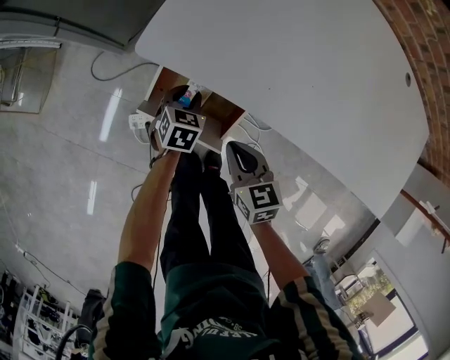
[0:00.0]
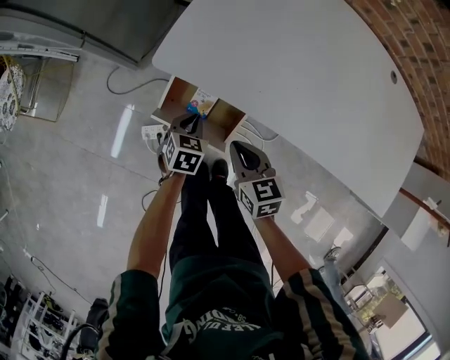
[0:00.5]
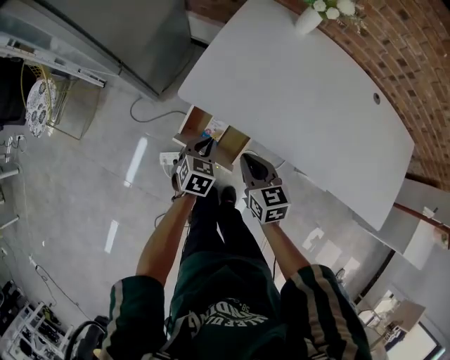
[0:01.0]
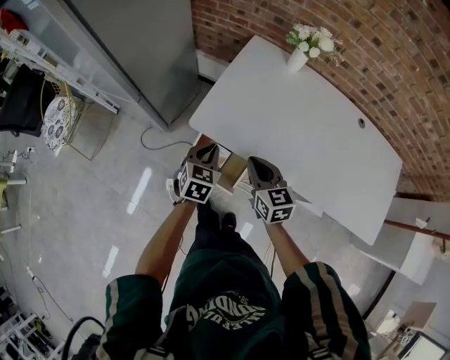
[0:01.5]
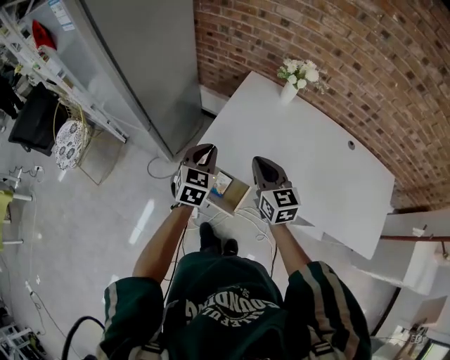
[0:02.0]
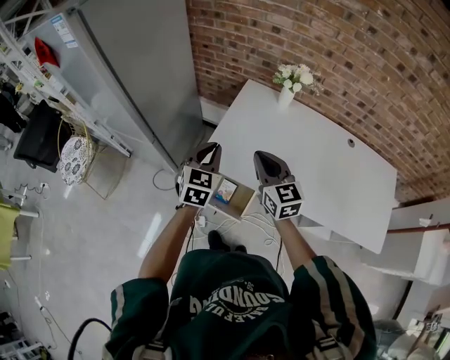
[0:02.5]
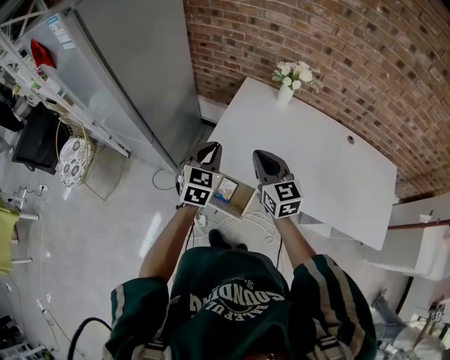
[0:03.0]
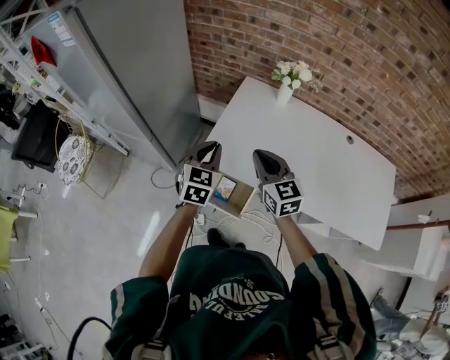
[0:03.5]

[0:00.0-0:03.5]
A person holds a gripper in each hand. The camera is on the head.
0:00.0 to 0:02.0: Both grippers travel together upward, some 40 cm. The right gripper rotates about 30 degrees, while the left gripper swivels about 30 degrees, and closes its fingers.
0:02.0 to 0:03.5: The grippers stay close to where they were, moving slightly.

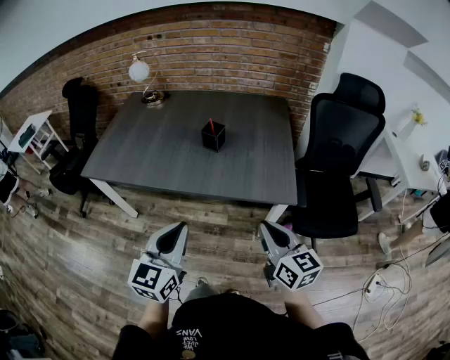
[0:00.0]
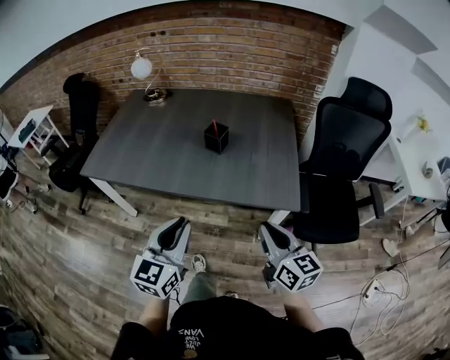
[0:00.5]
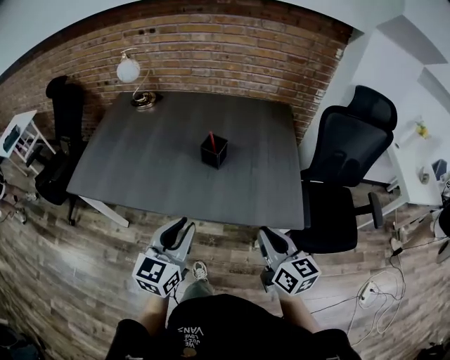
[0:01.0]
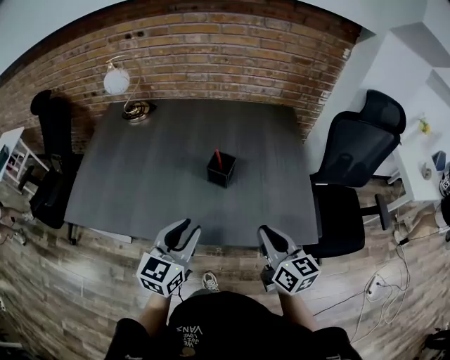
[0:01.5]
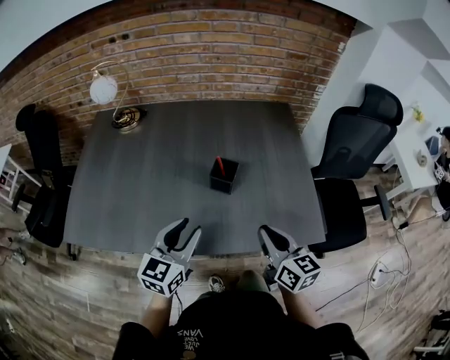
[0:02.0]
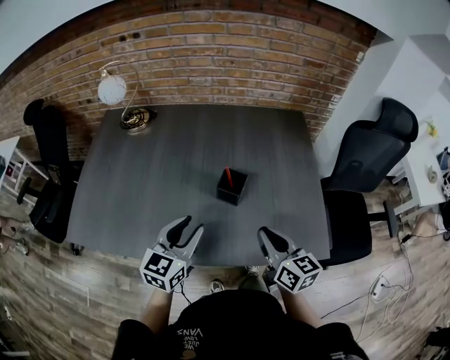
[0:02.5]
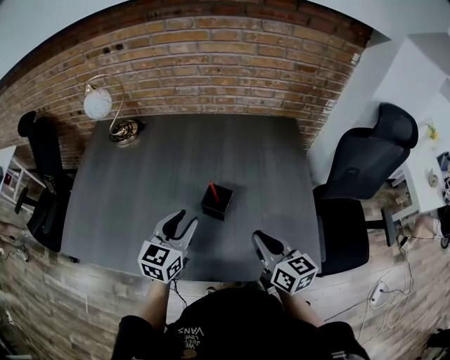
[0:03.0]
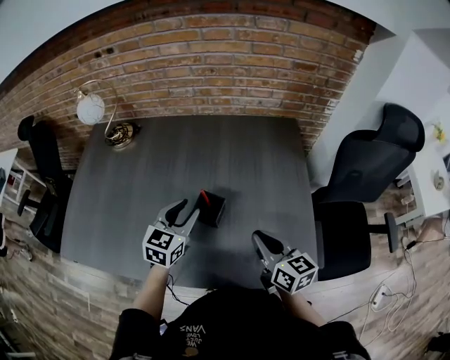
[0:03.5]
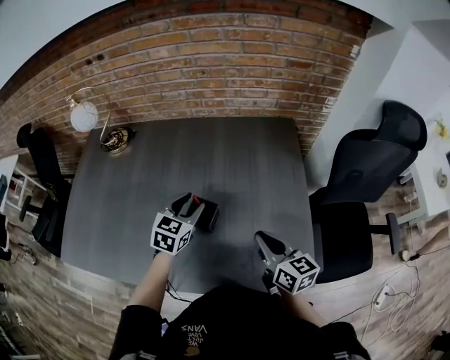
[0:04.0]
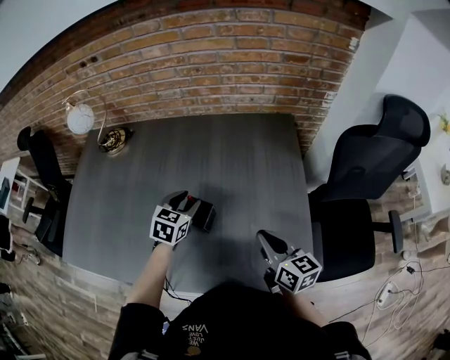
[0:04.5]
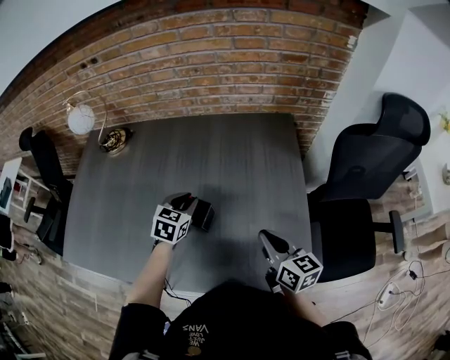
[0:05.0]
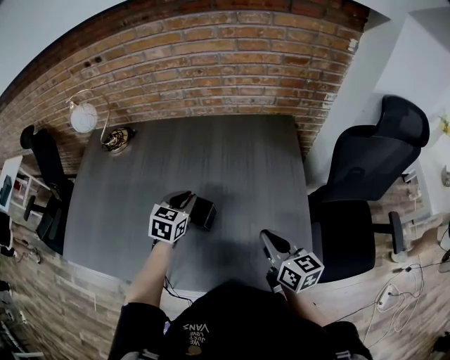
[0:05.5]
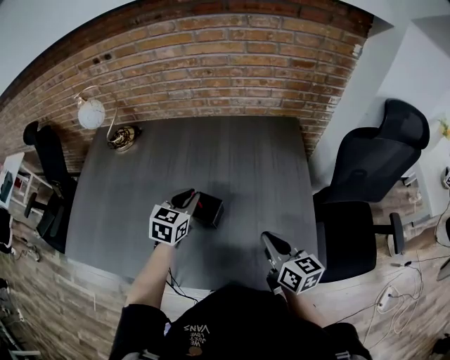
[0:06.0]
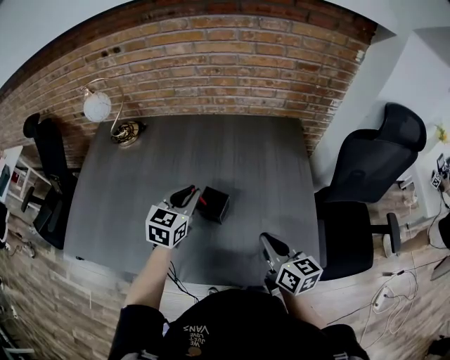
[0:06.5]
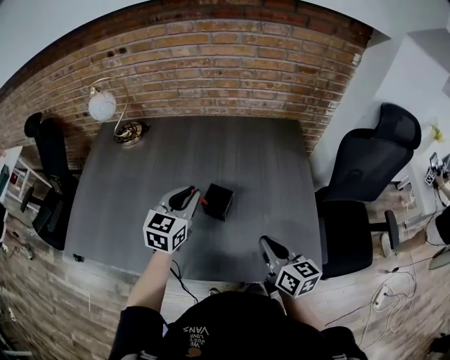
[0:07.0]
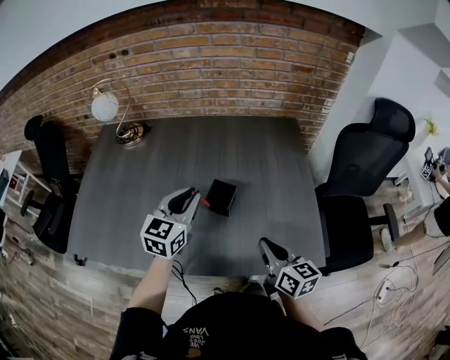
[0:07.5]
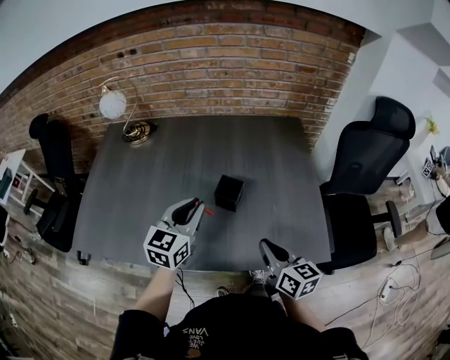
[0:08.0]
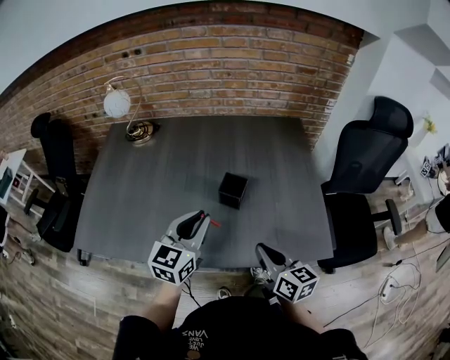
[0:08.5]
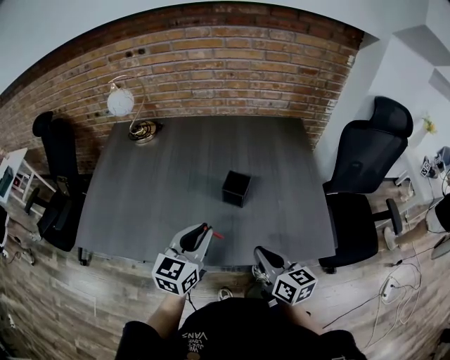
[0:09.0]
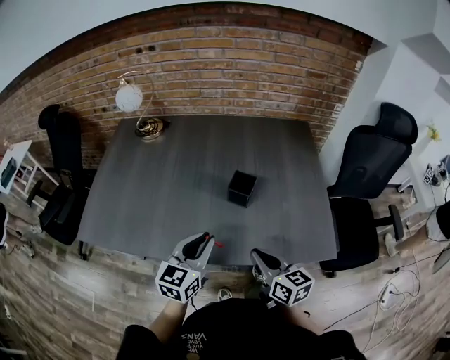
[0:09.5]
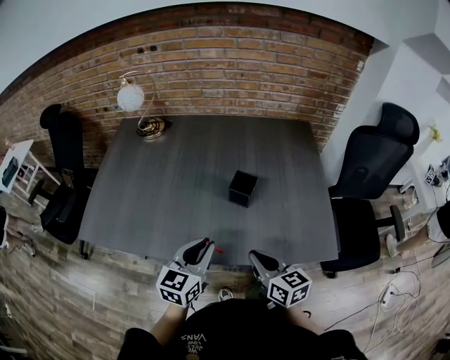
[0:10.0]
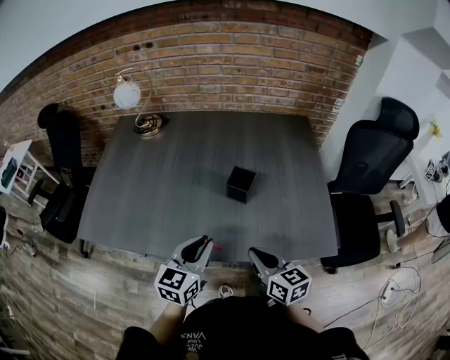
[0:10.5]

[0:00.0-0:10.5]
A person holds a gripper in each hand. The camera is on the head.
0:00.0 to 0:02.0: The left gripper is displaced forward by some 30 cm, and opens. The right gripper travels forward and to the left by approximately 25 cm.
0:02.0 to 0:04.0: The right gripper heads forward and to the right, covering approximately 20 cm, while the left gripper is displaced forward by approximately 25 cm, and changes its angle by roughly 20 degrees.
0:04.0 to 0:06.5: The left gripper moves about 5 cm.
0:06.5 to 0:08.5: The right gripper goes some 15 cm backward and to the left; the left gripper heads backward, covering some 15 cm.
0:08.5 to 0:10.5: The right gripper moves some 5 cm. Meanwhile the left gripper moves backward and downward, some 10 cm.

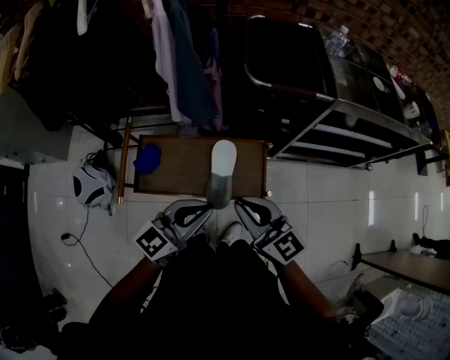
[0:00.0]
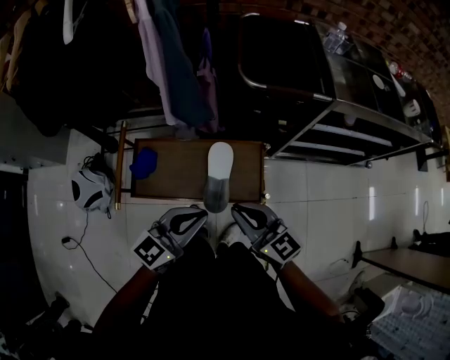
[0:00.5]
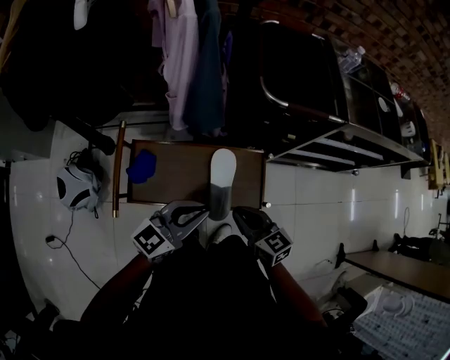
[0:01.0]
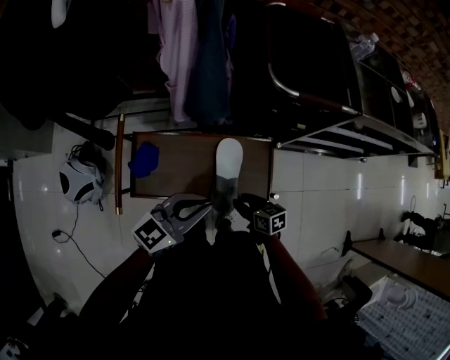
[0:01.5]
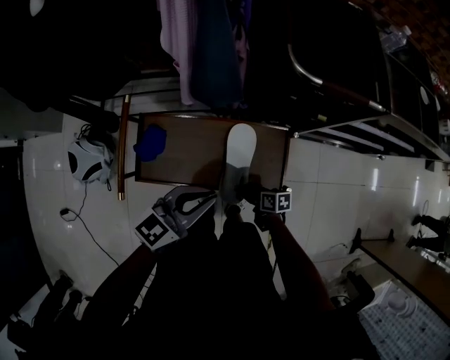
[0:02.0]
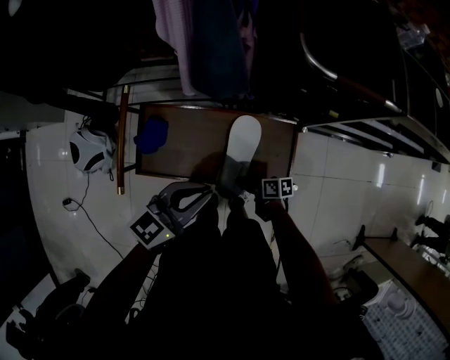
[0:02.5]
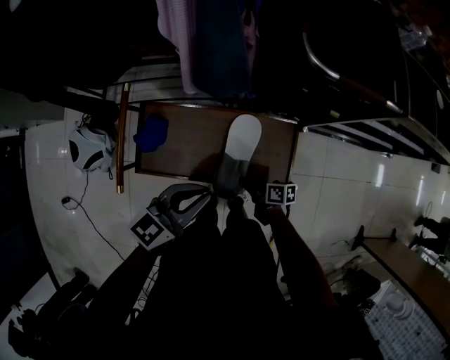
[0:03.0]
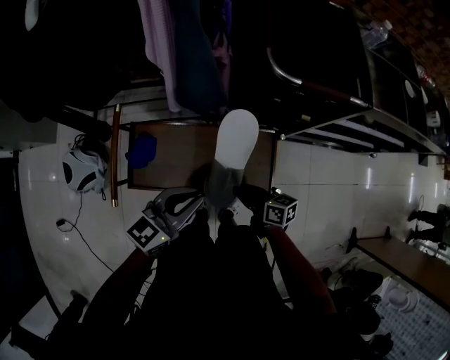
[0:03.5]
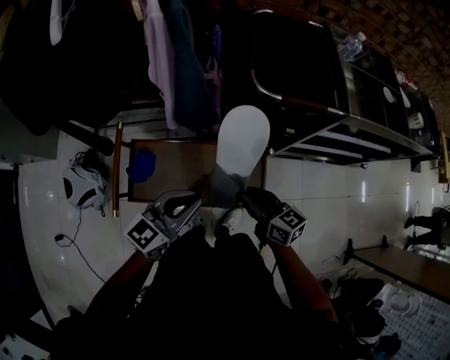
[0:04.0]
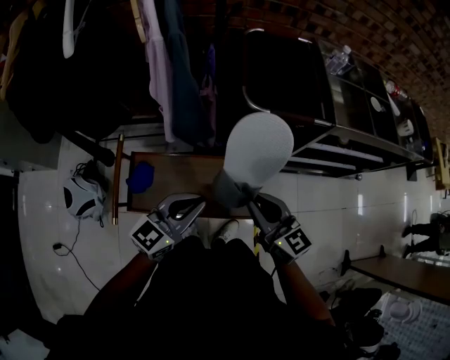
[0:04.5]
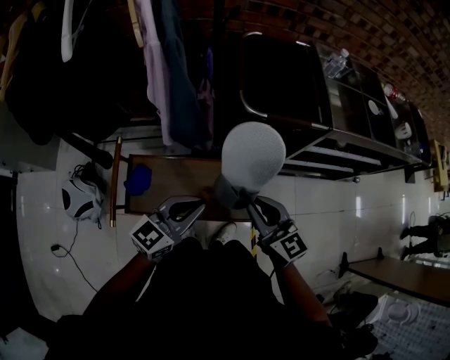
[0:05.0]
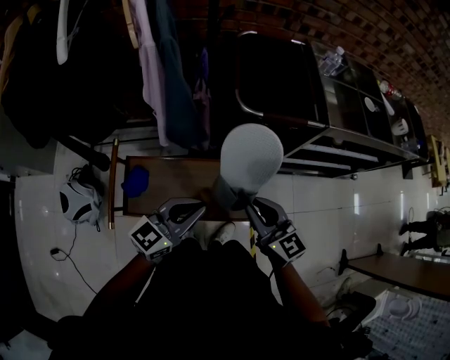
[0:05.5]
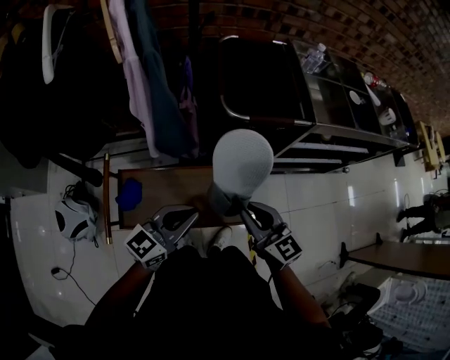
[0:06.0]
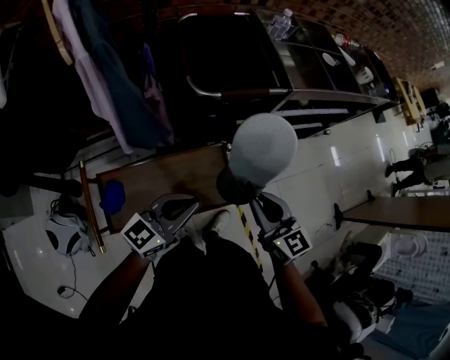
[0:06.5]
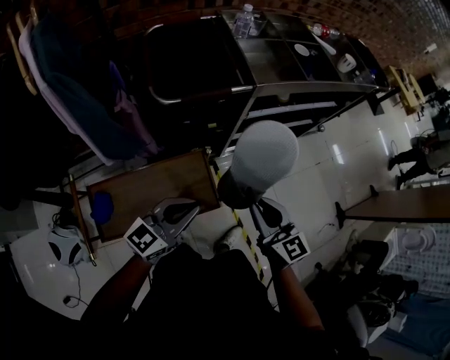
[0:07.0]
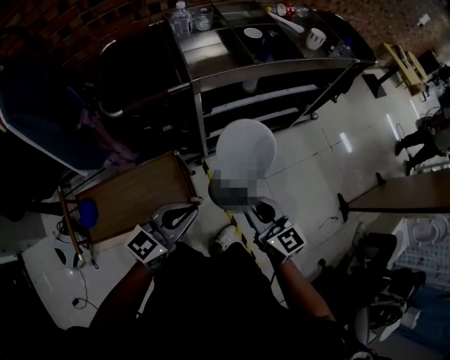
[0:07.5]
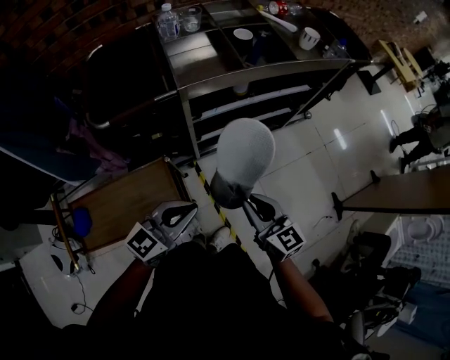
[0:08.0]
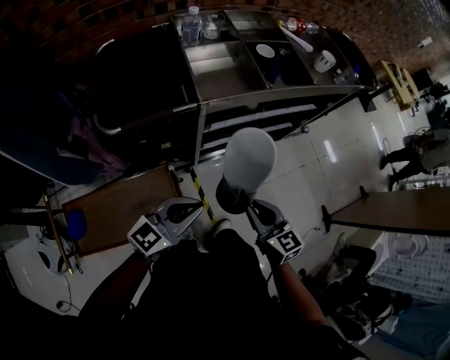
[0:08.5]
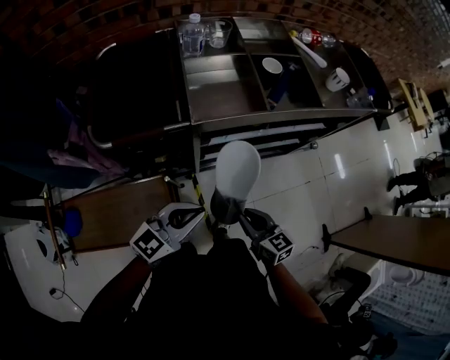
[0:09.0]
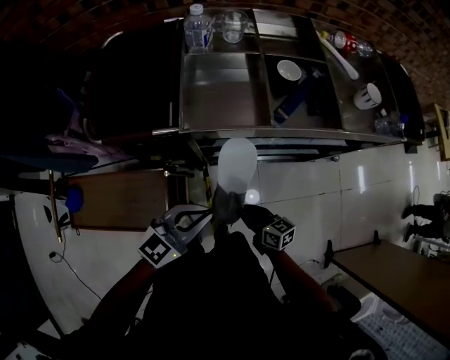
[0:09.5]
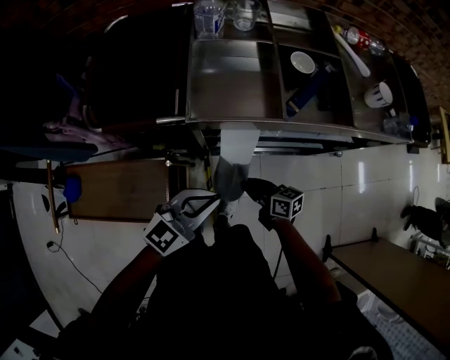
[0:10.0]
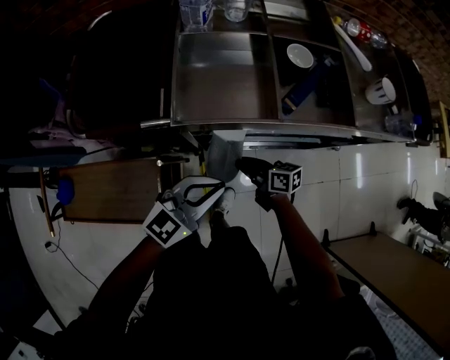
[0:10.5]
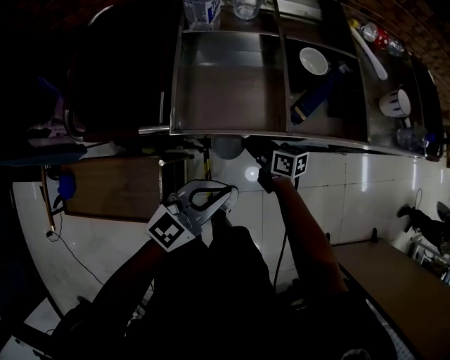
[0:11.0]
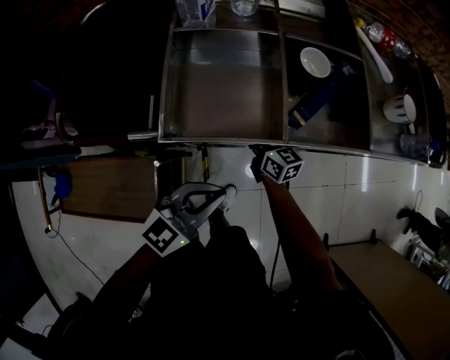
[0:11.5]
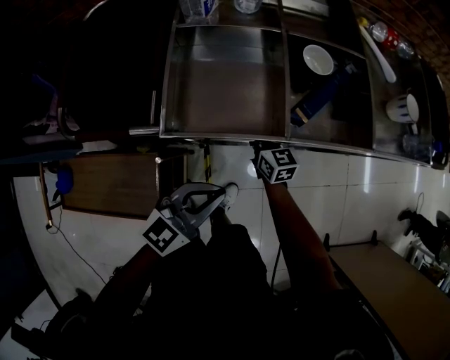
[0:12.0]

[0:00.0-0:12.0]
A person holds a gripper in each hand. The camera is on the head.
0:00.0 to 0:02.0: The right gripper moves downward, some 40 cm, points its fingers approximately 40 degrees further downward, and opens up; the left gripper shifts about 15 cm downward, forward and to the left.
0:02.0 to 0:04.0: The left gripper moves upward, some 5 cm. Meanwhile the right gripper travels upward by about 30 cm, swivels roughly 40 degrees, and closes up.
0:04.0 to 0:06.0: The right gripper shifts roughly 10 cm upward, and rotates some 20 degrees.
0:06.0 to 0:08.0: The grippers both shift to the right by approximately 35 cm. The left gripper changes its angle by roughly 20 degrees. The right gripper turns by roughly 20 degrees.
0:08.0 to 0:10.0: The right gripper moves roughly 30 cm, and swivels roughly 50 degrees, while the left gripper changes place by approximately 20 cm.
0:10.0 to 0:12.0: The right gripper heads forward, covering some 20 cm, and changes its angle by approximately 30 degrees. Meanwhile the left gripper is displaced forward by roughly 5 cm.
